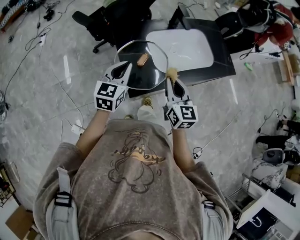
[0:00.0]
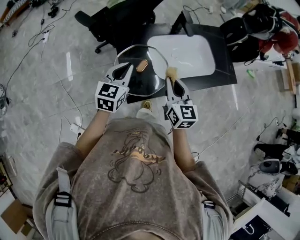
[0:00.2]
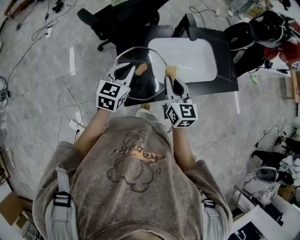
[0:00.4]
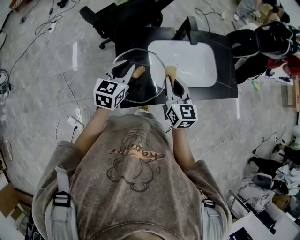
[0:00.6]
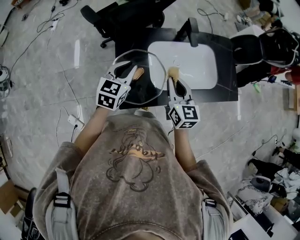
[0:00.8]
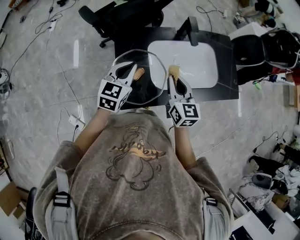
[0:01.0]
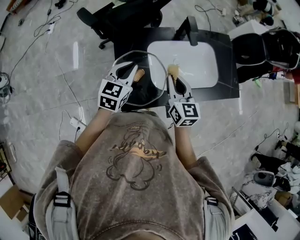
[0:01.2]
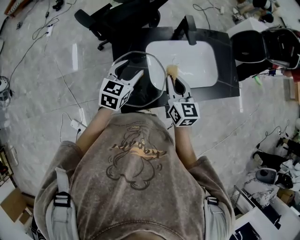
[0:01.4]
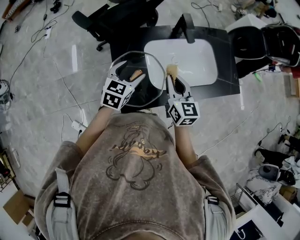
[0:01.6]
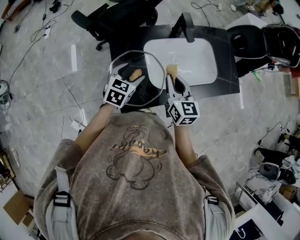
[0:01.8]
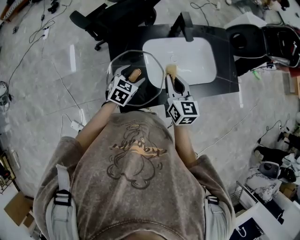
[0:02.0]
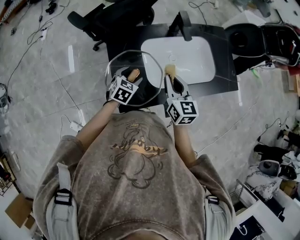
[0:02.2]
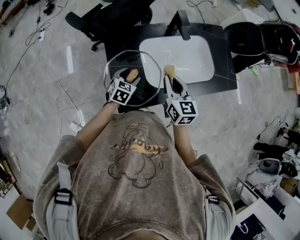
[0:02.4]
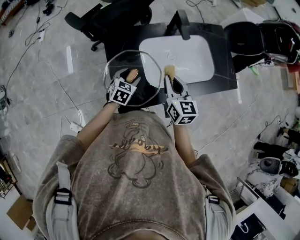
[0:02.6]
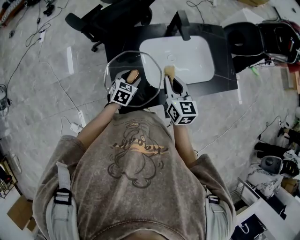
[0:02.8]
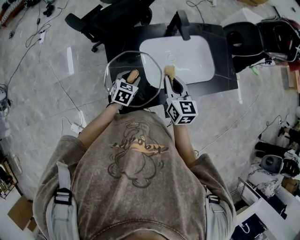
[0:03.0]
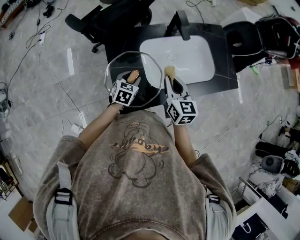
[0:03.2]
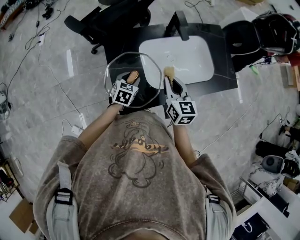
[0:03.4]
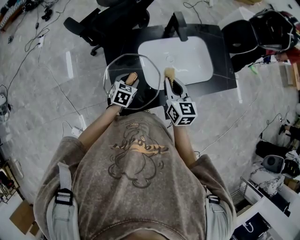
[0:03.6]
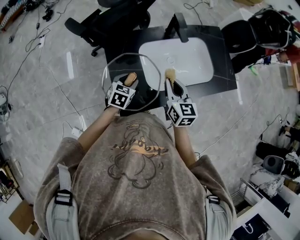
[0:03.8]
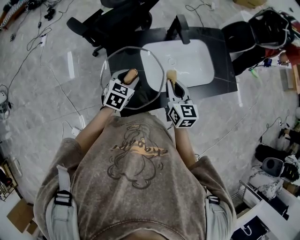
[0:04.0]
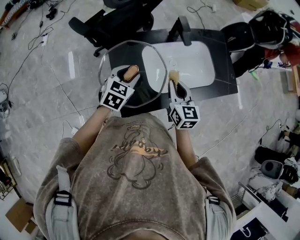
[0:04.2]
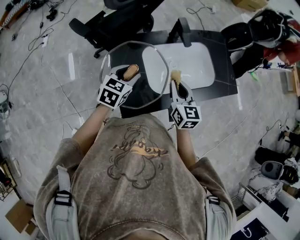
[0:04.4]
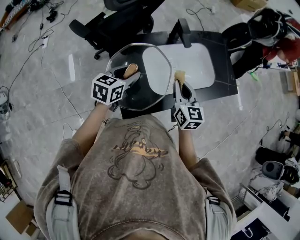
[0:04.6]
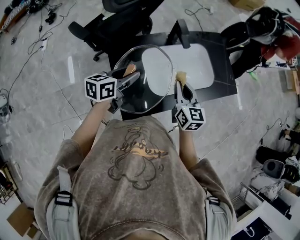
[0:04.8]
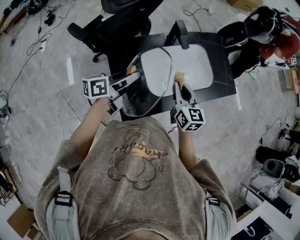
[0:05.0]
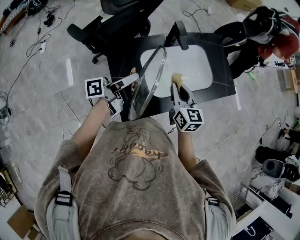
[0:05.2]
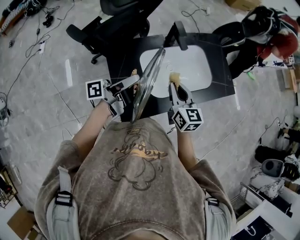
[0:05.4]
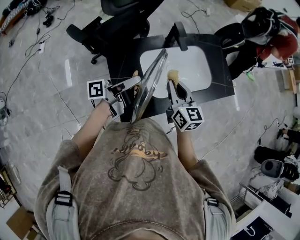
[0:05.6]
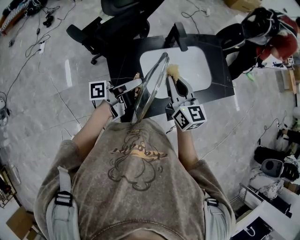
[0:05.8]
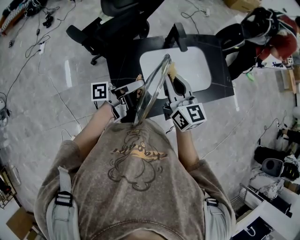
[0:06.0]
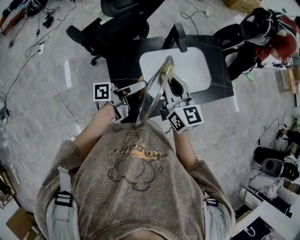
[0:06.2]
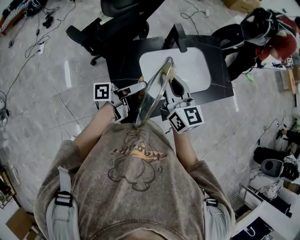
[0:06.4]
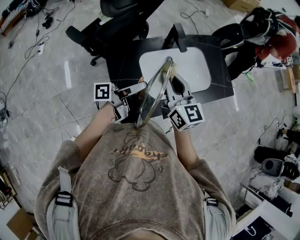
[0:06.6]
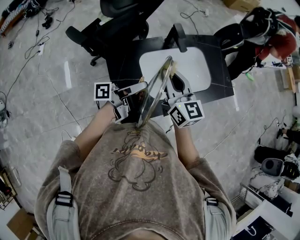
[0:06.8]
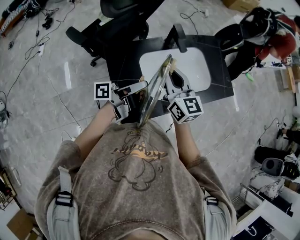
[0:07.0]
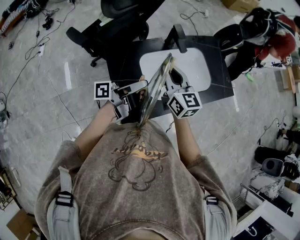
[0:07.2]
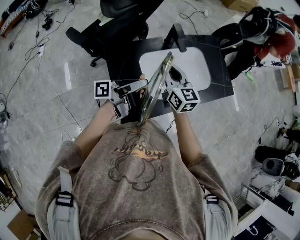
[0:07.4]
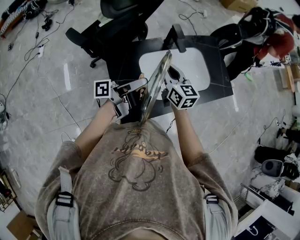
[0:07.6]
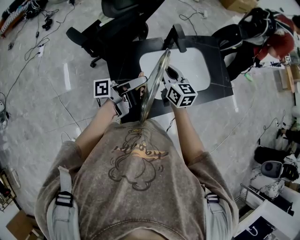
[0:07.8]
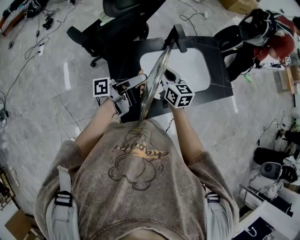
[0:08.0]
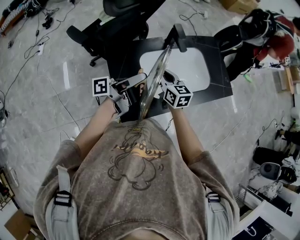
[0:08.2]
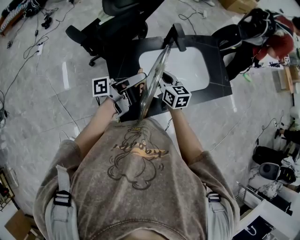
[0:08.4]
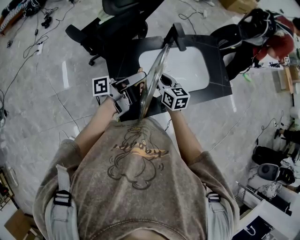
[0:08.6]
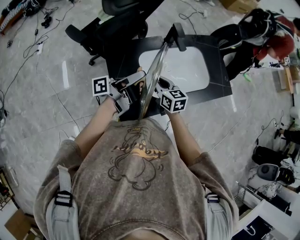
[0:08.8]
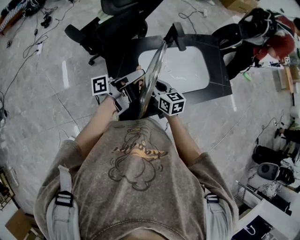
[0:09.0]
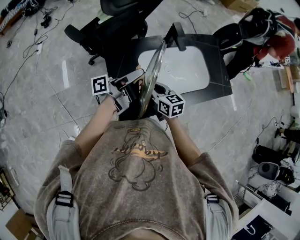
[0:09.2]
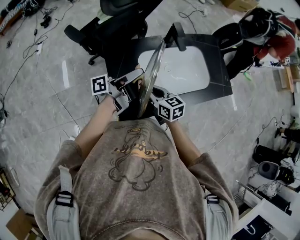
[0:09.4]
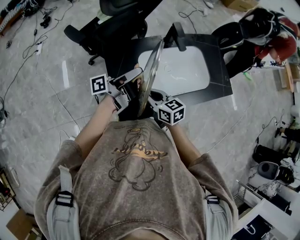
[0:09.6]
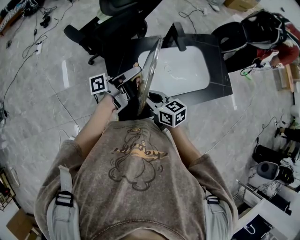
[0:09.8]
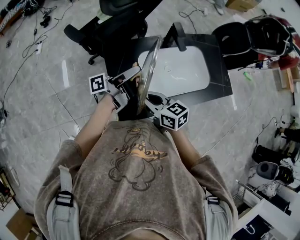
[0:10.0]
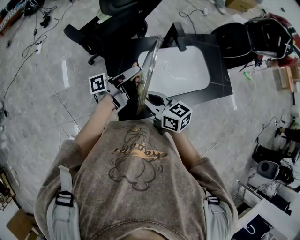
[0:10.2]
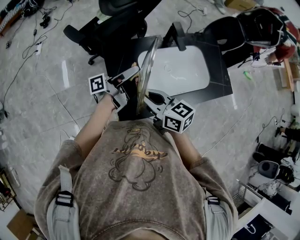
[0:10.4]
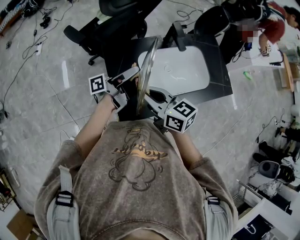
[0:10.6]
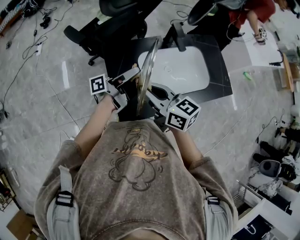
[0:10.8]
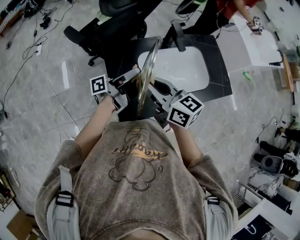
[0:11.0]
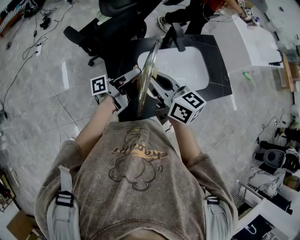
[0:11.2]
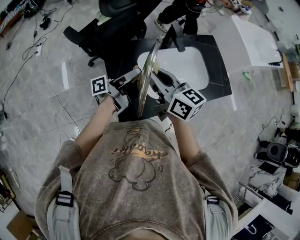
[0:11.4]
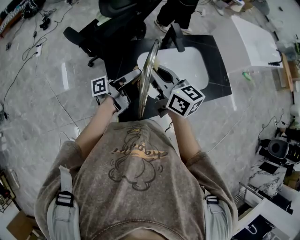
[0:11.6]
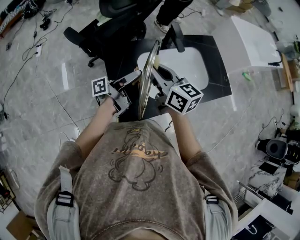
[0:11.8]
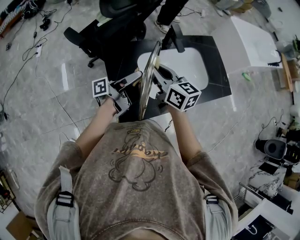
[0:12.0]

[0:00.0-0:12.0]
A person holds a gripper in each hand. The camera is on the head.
0:00.0 to 0:01.6: The right gripper moves forward, some 15 cm. The left gripper shifts about 15 cm forward, to the right and downward, and opens its fingers.
0:01.6 to 0:03.0: The left gripper shifts roughly 15 cm downward, and closes its fingers.
0:03.0 to 0:04.4: The left gripper heads upward, covering some 15 cm.
0:04.4 to 0:06.0: The left gripper is displaced upward by approximately 5 cm, and angles its fingers upward, by about 50 degrees; the right gripper travels upward and to the left by some 10 cm.
0:06.0 to 0:07.6: The right gripper goes about 10 cm downward and forward.
0:07.6 to 0:09.0: The right gripper is displaced downward and backward by roughly 10 cm.
0:09.0 to 0:10.4: The right gripper travels upward and backward by some 15 cm, and changes its angle by roughly 20 degrees.
0:10.4 to 0:12.0: The right gripper is displaced forward by about 10 cm.

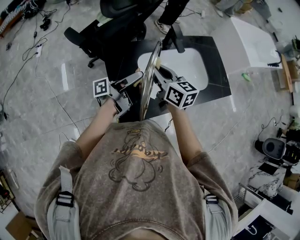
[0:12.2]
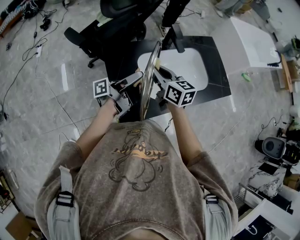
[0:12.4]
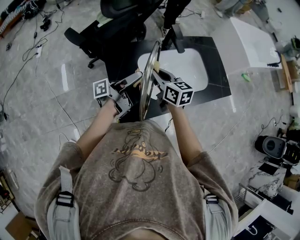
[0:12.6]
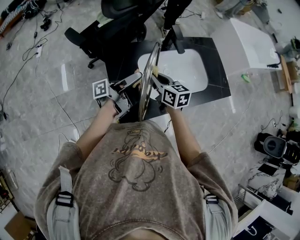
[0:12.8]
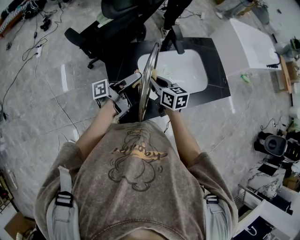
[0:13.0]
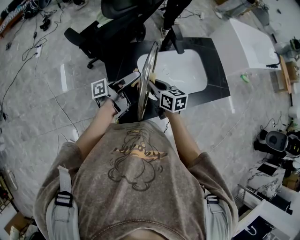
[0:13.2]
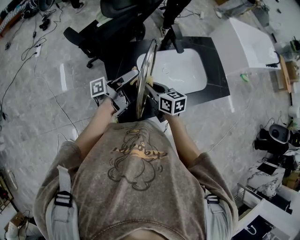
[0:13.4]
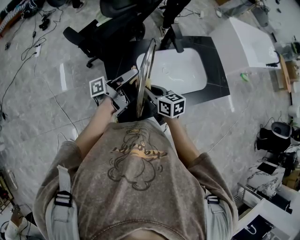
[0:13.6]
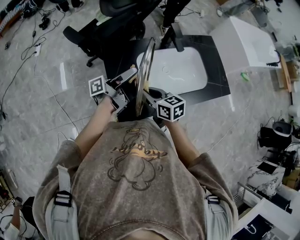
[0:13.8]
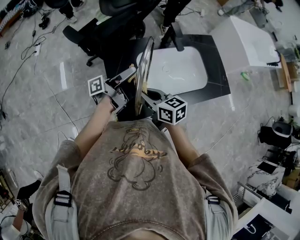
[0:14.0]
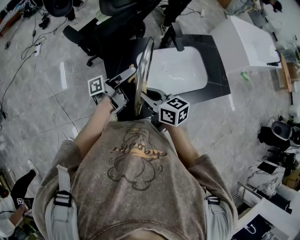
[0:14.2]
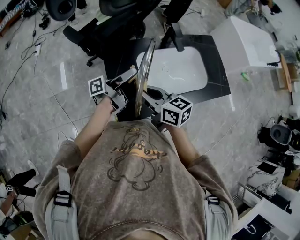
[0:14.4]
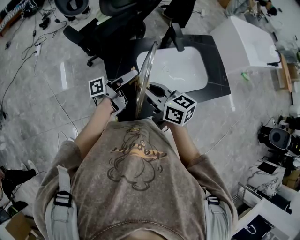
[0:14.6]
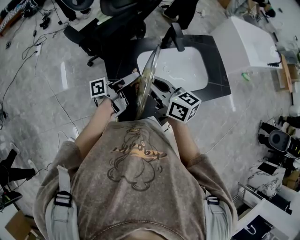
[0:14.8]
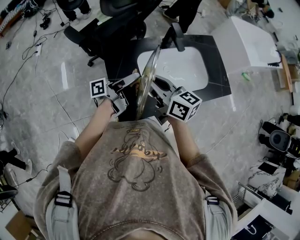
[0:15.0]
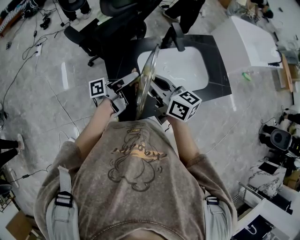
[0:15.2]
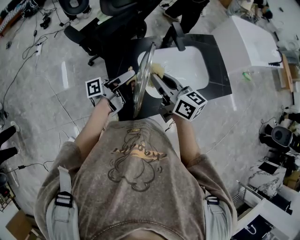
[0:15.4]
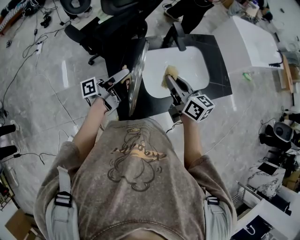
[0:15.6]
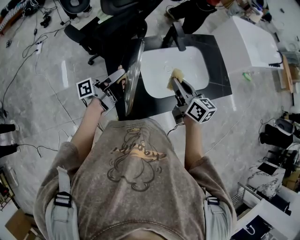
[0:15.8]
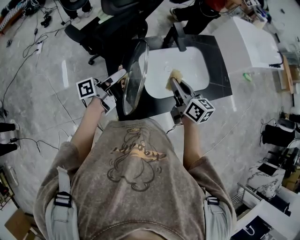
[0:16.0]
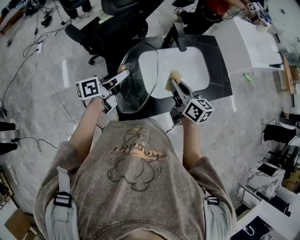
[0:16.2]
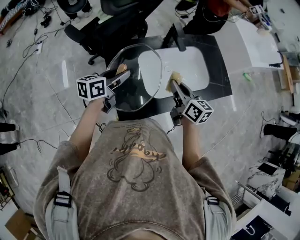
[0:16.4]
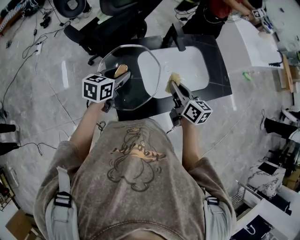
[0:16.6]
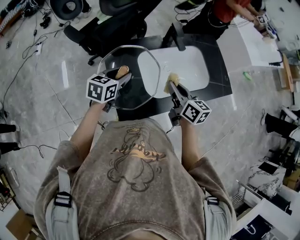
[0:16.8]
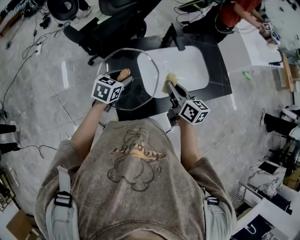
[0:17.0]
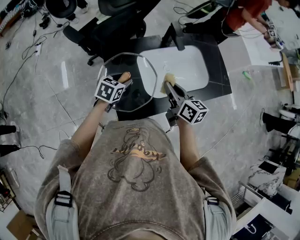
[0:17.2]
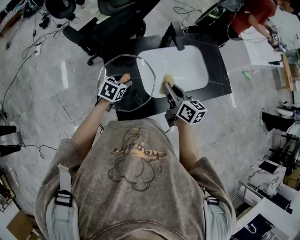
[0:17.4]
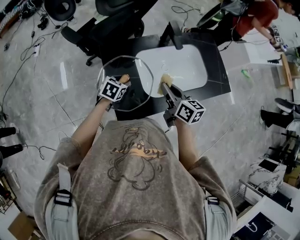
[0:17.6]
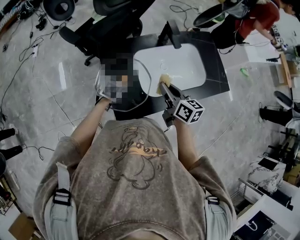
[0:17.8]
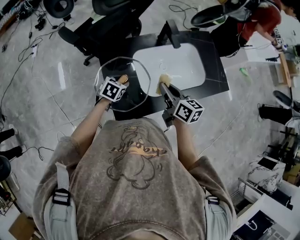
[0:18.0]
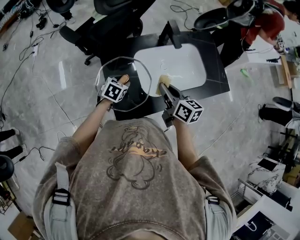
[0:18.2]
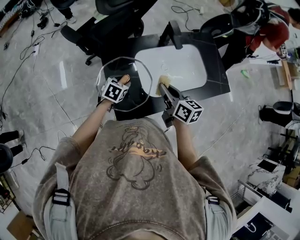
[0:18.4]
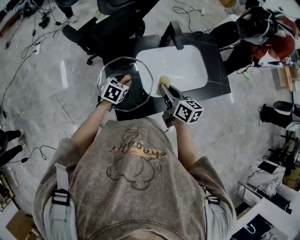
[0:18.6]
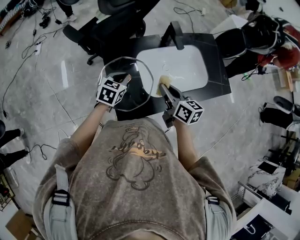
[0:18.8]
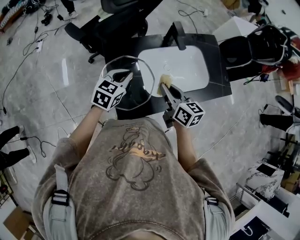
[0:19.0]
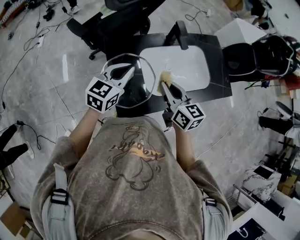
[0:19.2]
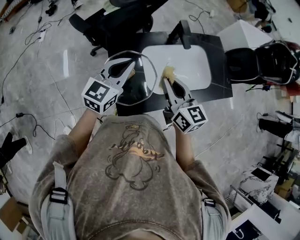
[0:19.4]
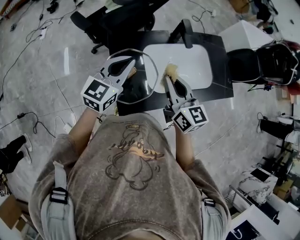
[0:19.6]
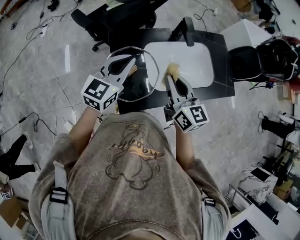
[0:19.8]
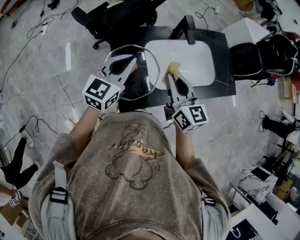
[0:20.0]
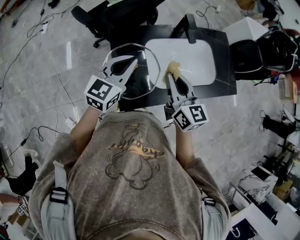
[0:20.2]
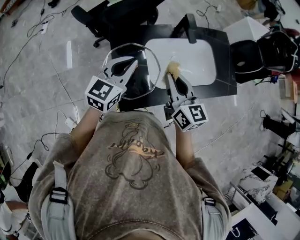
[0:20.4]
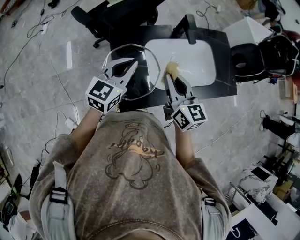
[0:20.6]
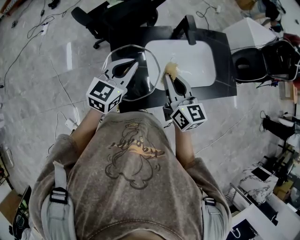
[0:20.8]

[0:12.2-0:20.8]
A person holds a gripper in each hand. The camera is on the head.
0:12.2 to 0:13.6: The right gripper shifts approximately 15 cm downward and backward.
0:13.6 to 0:15.0: The right gripper travels upward by roughly 15 cm, and changes its angle by about 20 degrees.
0:15.0 to 0:16.6: The left gripper shifts approximately 5 cm to the left, and tilts its fingers roughly 50 degrees downward; the right gripper moves to the right and downward, about 15 cm.
0:16.6 to 0:18.0: The left gripper moves downward, about 15 cm, and turns by roughly 30 degrees.
0:18.0 to 0:19.4: The right gripper shifts some 10 cm upward, and swivels about 20 degrees. The left gripper heads upward, covering approximately 25 cm, angles its fingers upward, by some 40 degrees, and closes up.
0:19.4 to 0:20.8: The grippers make only small movements.

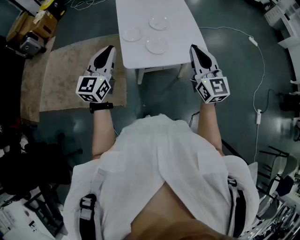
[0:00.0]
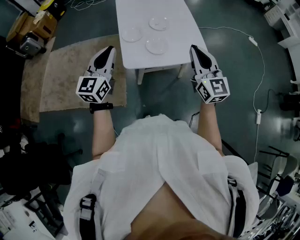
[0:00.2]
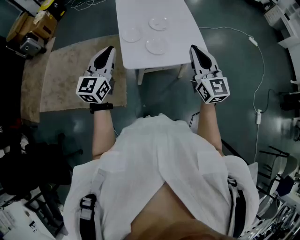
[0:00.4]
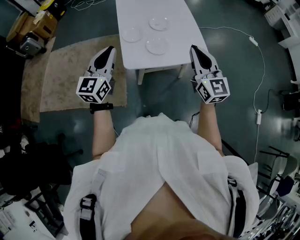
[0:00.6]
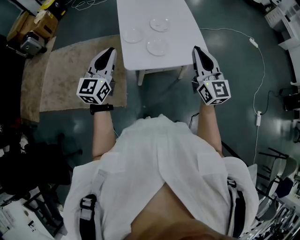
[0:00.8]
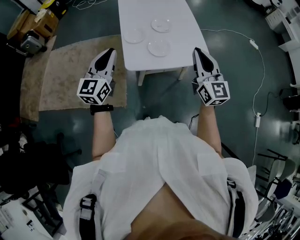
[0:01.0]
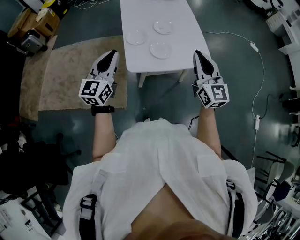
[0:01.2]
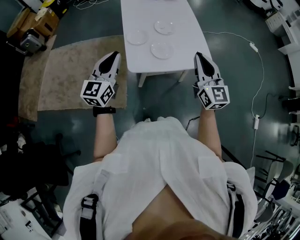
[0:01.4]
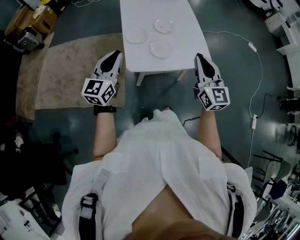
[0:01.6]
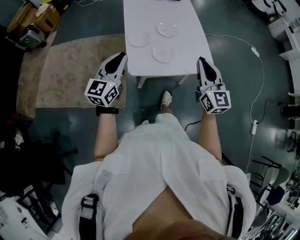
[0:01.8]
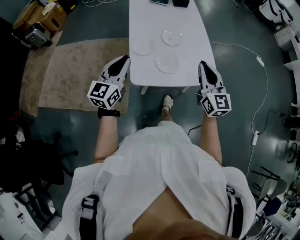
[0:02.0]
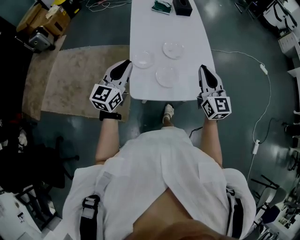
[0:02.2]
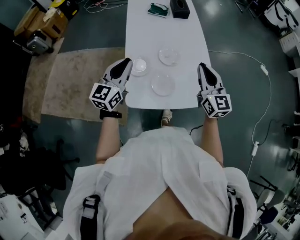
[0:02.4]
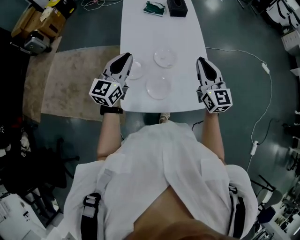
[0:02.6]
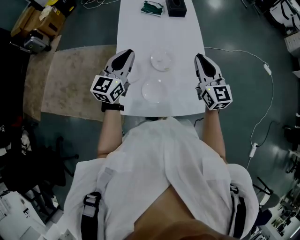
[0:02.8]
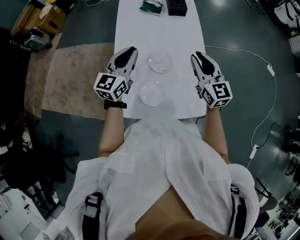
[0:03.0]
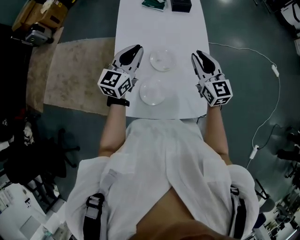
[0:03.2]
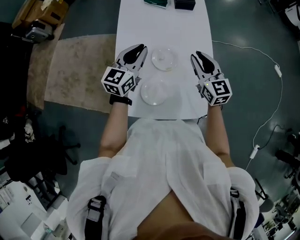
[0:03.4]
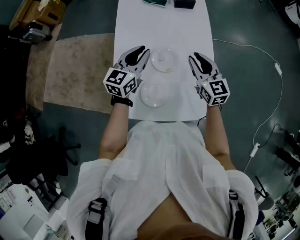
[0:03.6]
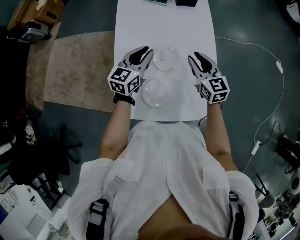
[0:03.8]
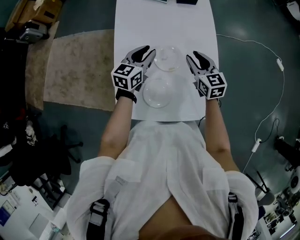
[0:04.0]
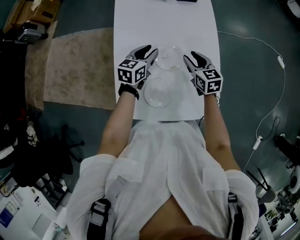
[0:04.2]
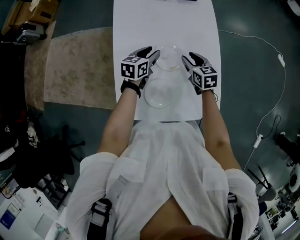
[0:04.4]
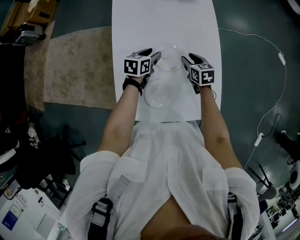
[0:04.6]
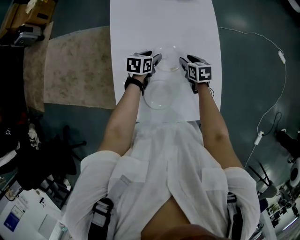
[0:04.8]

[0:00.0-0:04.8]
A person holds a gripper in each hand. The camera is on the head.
0:00.0 to 0:01.6: The grippers make only small movements.
0:01.6 to 0:03.2: The left gripper goes about 40 cm forward and to the right. The right gripper goes some 35 cm forward.
0:03.2 to 0:04.8: The grippers both shift downward by some 25 cm. The left gripper tips its fingers downward by roughly 40 degrees, and opens its fingers. Meanwhile the right gripper points its fingers approximately 40 degrees further downward, and opens its fingers.
